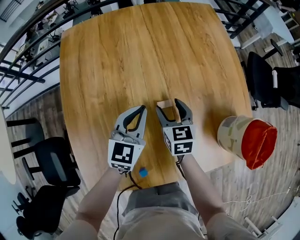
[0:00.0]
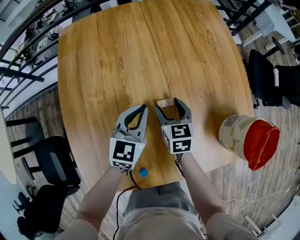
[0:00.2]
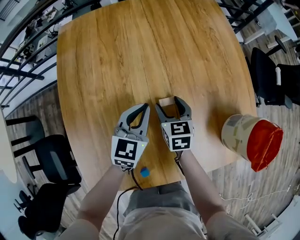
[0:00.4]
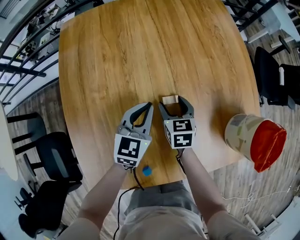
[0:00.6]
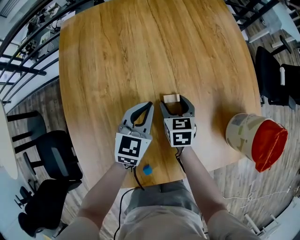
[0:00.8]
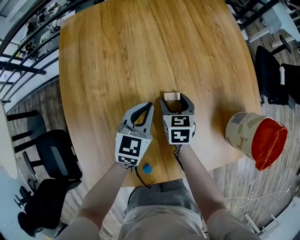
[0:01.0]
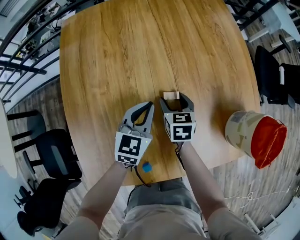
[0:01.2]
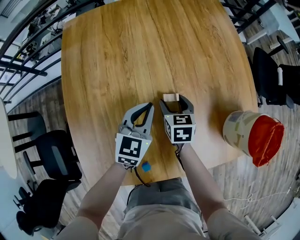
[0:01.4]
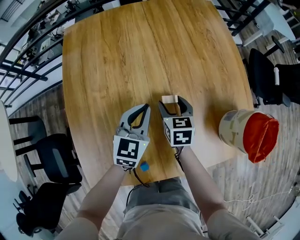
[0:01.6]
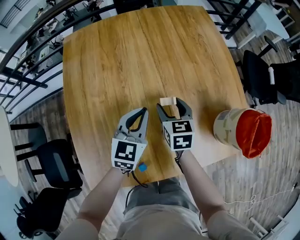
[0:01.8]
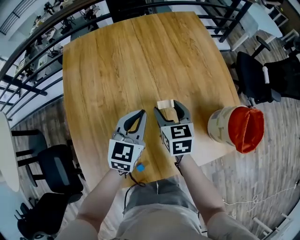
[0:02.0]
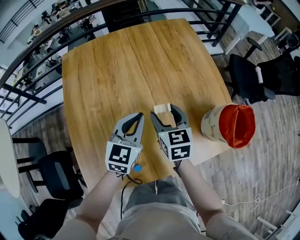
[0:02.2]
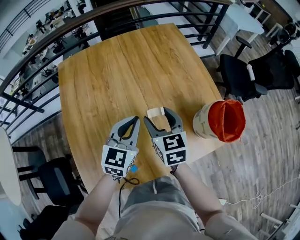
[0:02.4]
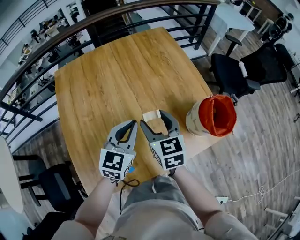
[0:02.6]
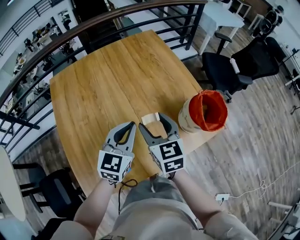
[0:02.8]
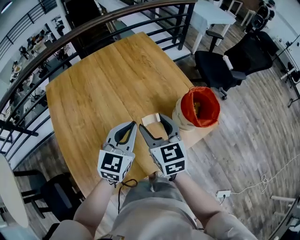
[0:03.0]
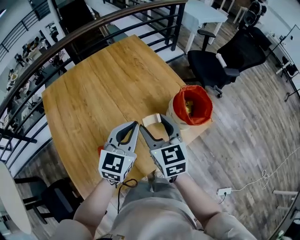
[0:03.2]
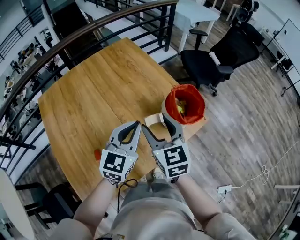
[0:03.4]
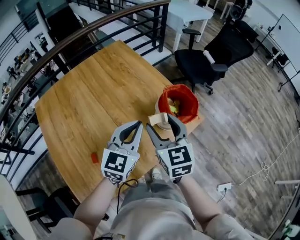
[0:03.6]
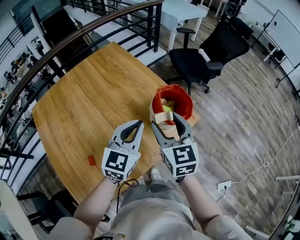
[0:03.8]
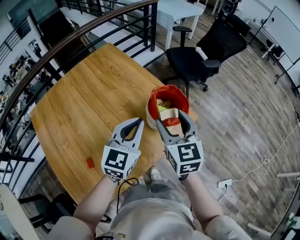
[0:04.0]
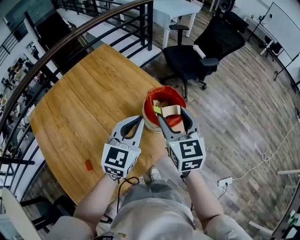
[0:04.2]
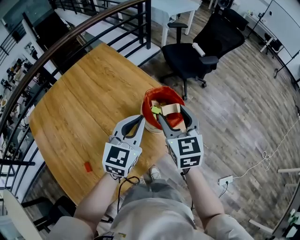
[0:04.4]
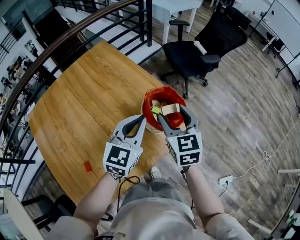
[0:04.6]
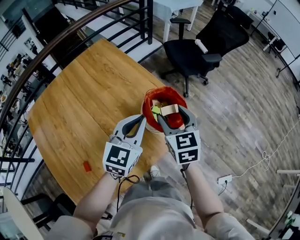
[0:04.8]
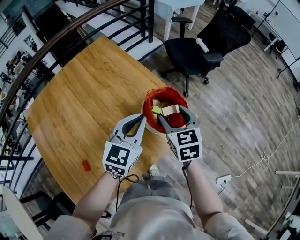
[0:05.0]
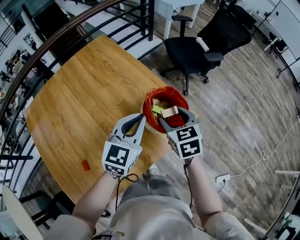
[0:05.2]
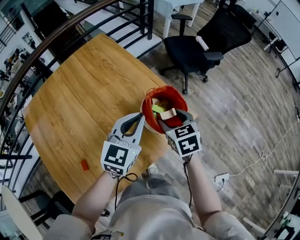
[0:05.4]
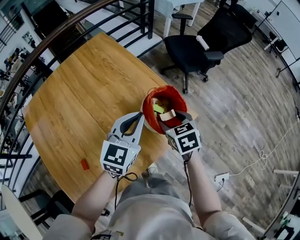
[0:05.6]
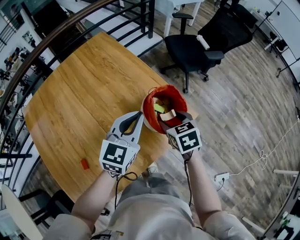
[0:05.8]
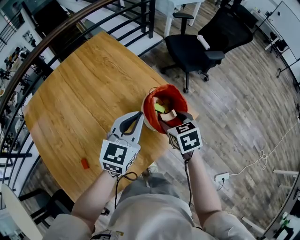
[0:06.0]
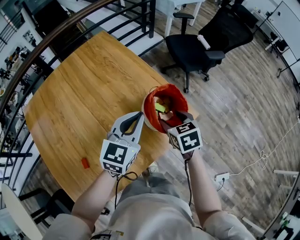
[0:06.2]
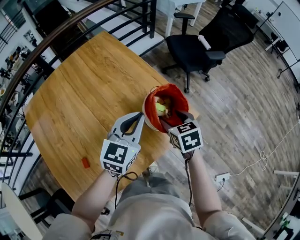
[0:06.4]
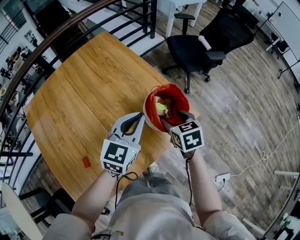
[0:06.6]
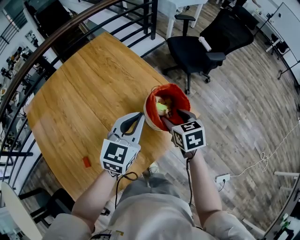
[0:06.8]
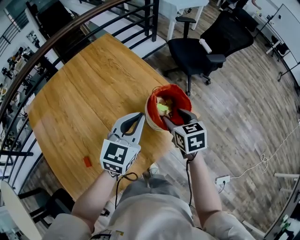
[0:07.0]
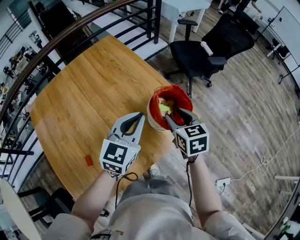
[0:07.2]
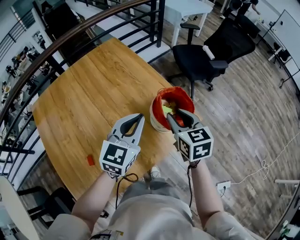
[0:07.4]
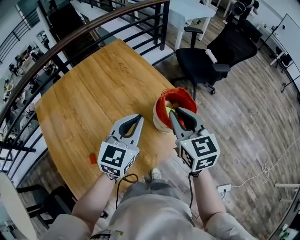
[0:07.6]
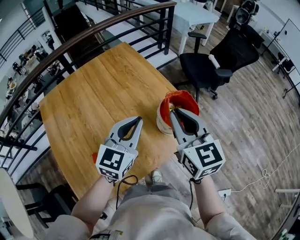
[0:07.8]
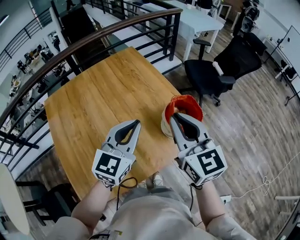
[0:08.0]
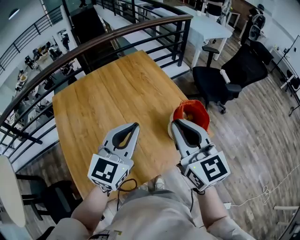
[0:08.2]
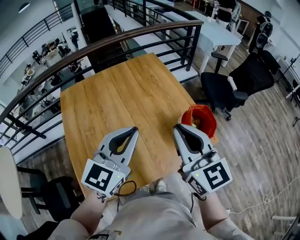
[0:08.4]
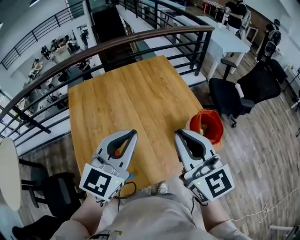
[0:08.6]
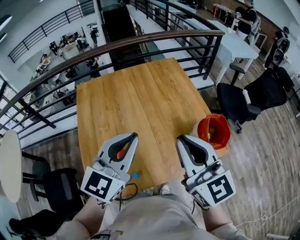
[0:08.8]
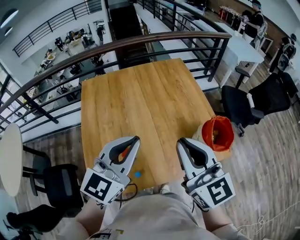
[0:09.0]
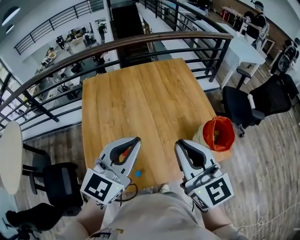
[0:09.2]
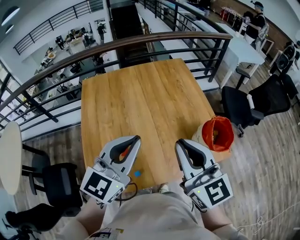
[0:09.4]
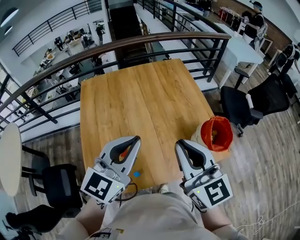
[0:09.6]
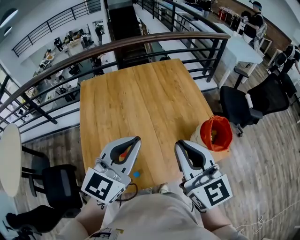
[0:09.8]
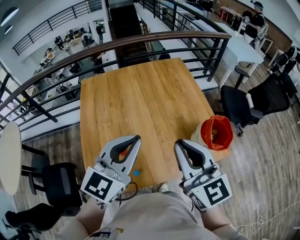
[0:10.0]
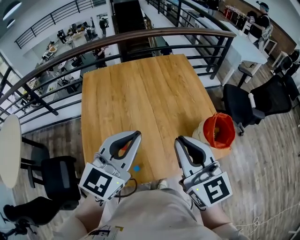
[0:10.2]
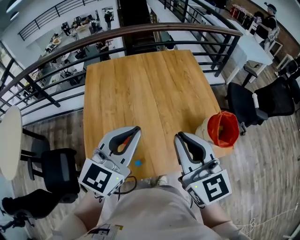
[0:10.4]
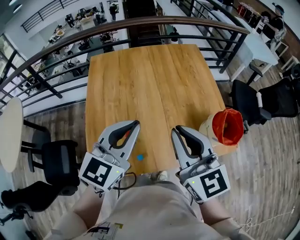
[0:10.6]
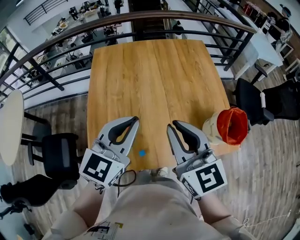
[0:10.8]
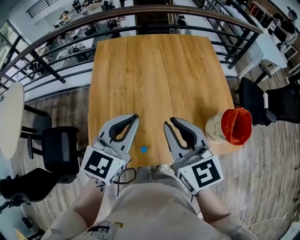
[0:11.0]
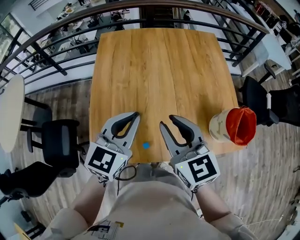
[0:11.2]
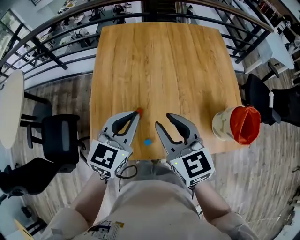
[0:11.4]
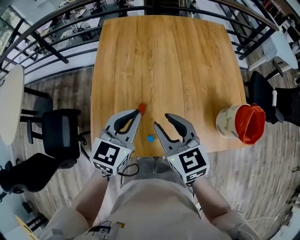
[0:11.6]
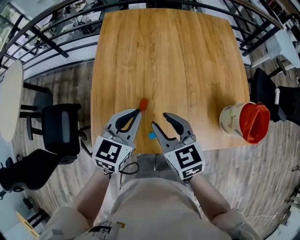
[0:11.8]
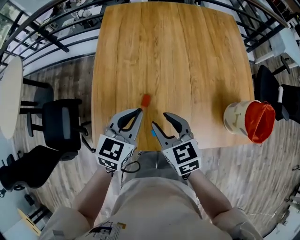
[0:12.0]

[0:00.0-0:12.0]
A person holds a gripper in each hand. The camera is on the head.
0:01.6 to 0:03.0: The right gripper moves upward, backward and to the right, some 30 cm, and changes its angle by about 20 degrees. Meanwhile the left gripper moves upward, to the right and backward, about 25 cm, and changes its angle by approximately 20 degrees.
0:03.0 to 0:04.4: The left gripper is displaced to the right and forward by approximately 20 cm, while the right gripper is displaced to the right by some 25 cm, and changes its angle by approximately 20 degrees.
0:04.4 to 0:06.0: The right gripper goes some 15 cm downward, and rotates roughly 30 degrees.
0:06.0 to 0:07.6: The right gripper heads upward, covering about 15 cm, turns by approximately 30 degrees, and closes its fingers; the left gripper travels upward and backward by some 5 cm.
0:07.6 to 0:09.0: The right gripper moves to the left, upward and backward, some 25 cm, and swivels approximately 40 degrees. The left gripper travels to the left, backward and upward by roughly 30 cm, and swivels approximately 20 degrees.
0:09.0 to 0:10.4: The grippers stay close to where they were, moving slightly.
0:10.4 to 0:12.0: Both grippers travel together downward and to the left, roughly 30 cm. The right gripper tilts its fingers some 30 degrees downward, and opens. The left gripper rotates approximately 30 degrees.

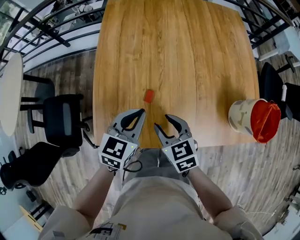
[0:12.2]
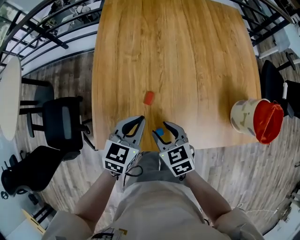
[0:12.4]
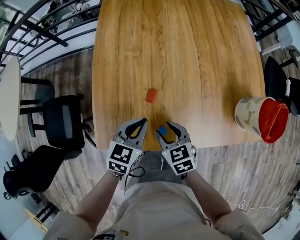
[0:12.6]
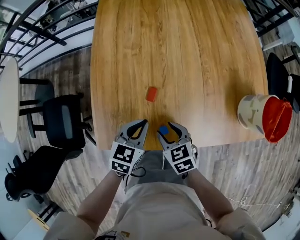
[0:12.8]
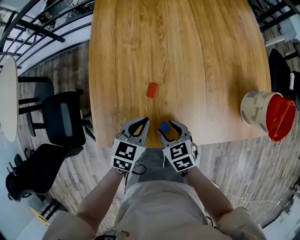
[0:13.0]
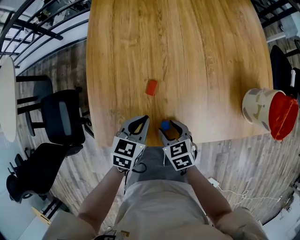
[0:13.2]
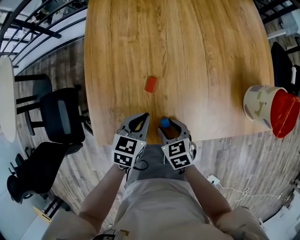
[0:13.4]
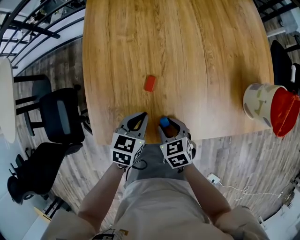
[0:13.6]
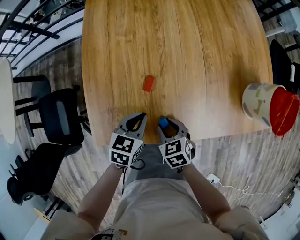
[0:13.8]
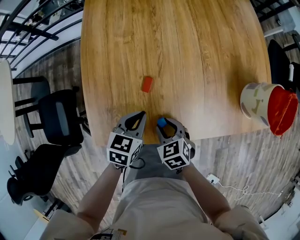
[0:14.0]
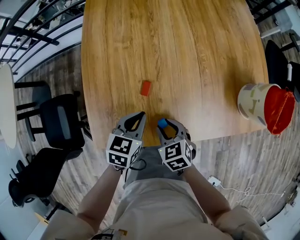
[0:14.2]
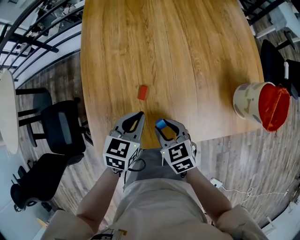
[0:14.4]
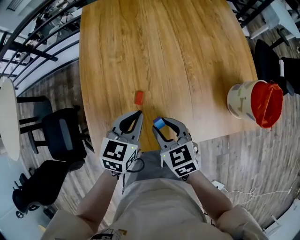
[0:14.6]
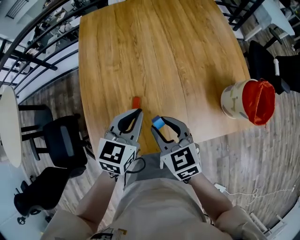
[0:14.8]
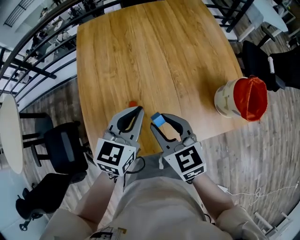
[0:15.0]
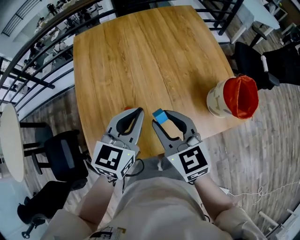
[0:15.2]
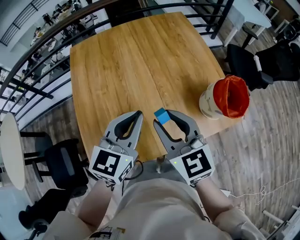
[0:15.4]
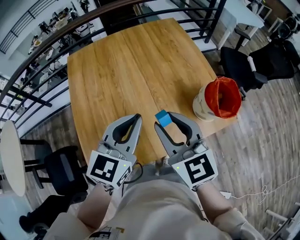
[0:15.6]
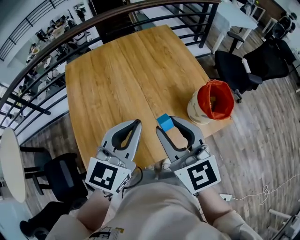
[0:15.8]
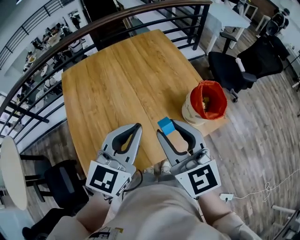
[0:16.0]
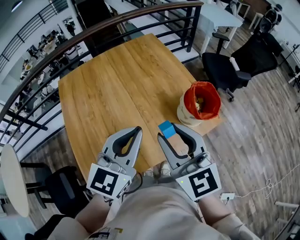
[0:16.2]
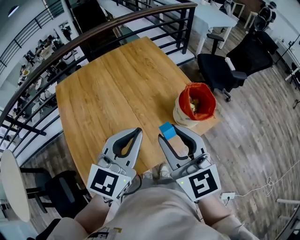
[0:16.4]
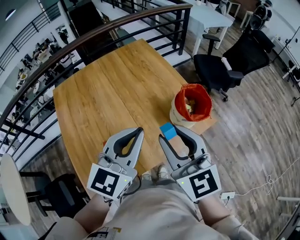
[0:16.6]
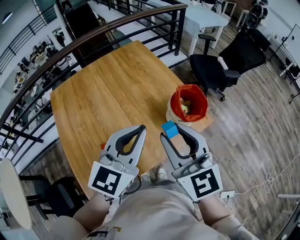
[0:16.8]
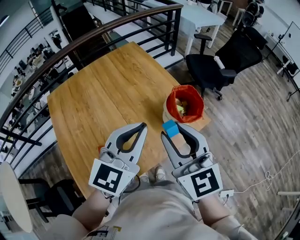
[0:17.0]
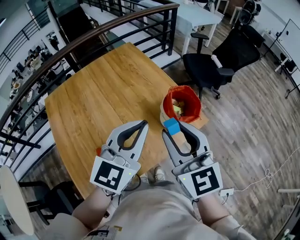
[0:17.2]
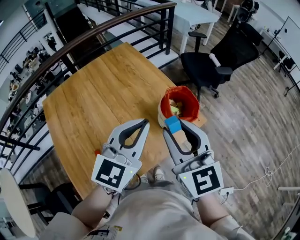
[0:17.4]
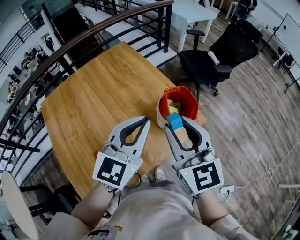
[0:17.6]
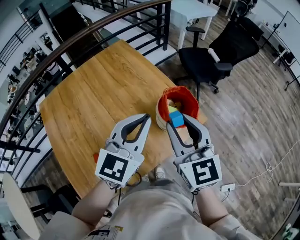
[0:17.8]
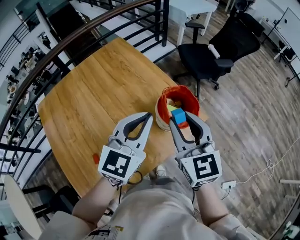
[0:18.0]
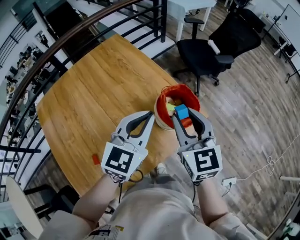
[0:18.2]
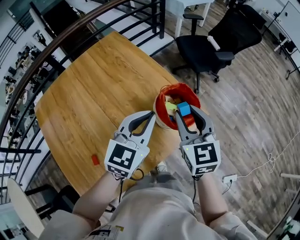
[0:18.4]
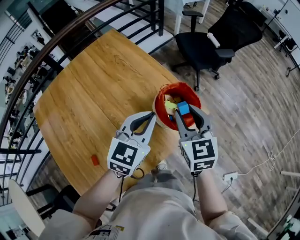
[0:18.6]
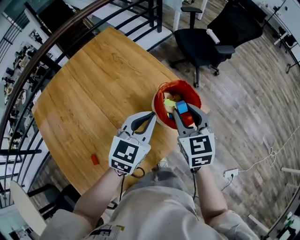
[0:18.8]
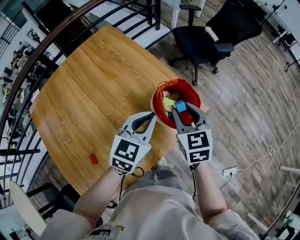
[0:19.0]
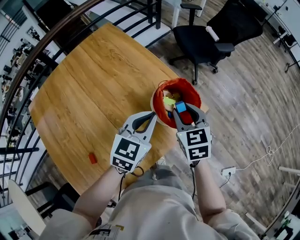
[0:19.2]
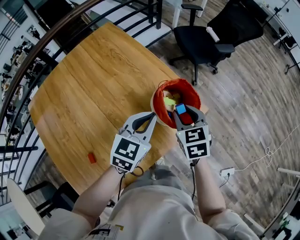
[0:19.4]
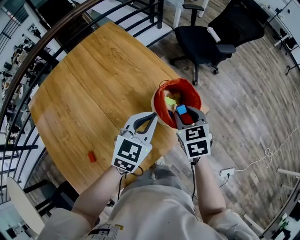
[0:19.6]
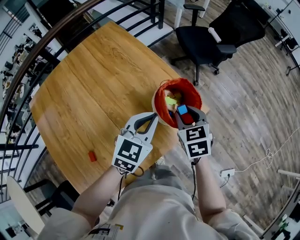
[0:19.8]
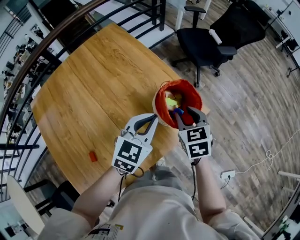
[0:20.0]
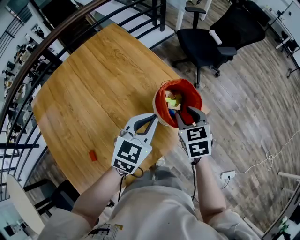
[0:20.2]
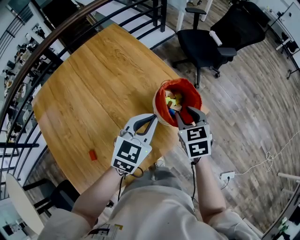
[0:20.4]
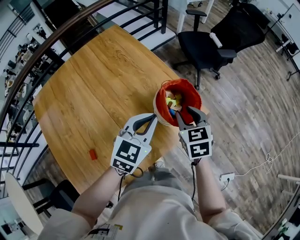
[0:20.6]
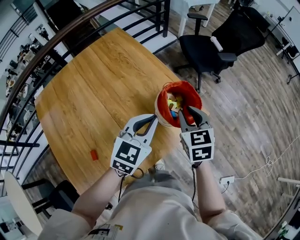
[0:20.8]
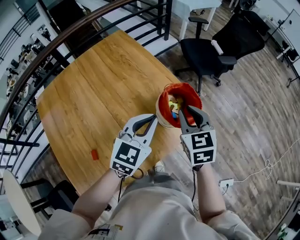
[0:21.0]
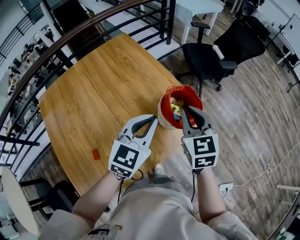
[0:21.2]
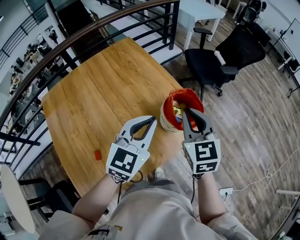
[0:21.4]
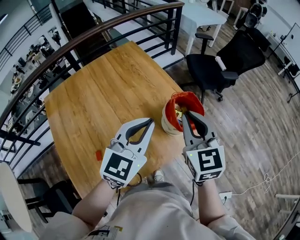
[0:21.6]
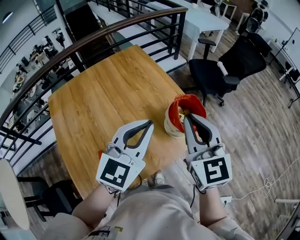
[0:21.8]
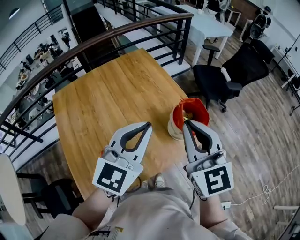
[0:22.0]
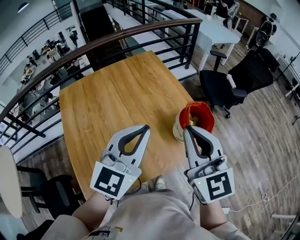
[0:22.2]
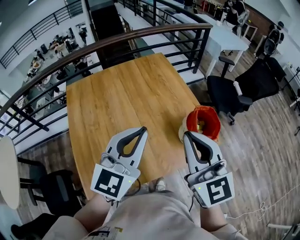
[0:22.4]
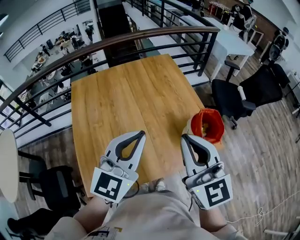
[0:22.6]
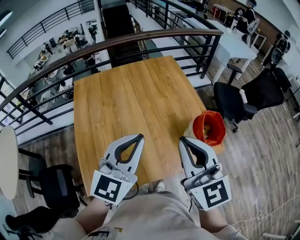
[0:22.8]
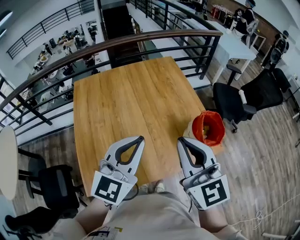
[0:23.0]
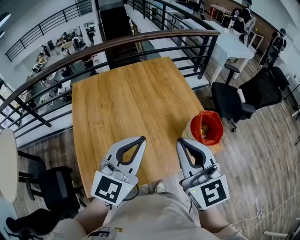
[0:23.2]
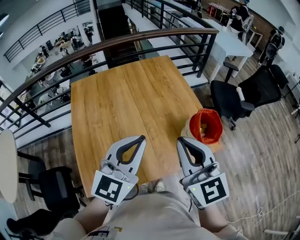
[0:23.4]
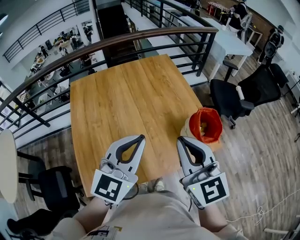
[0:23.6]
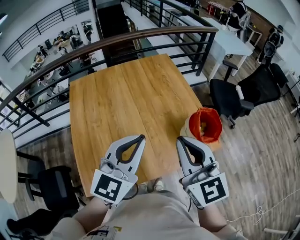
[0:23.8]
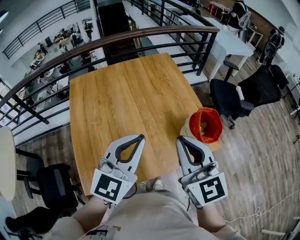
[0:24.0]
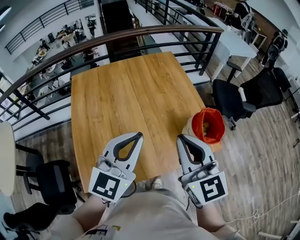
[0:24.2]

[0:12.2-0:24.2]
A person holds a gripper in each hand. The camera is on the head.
0:12.2 to 0:13.8: The two grippers go about 15 cm downward.
0:13.8 to 0:15.2: The left gripper goes about 30 cm upward and to the right, and swivels roughly 30 degrees. The right gripper heads upward, covering approximately 30 cm, and angles its fingers upward, by about 30 degrees.
0:15.2 to 0:16.6: Both grippers move to the right and upward, approximately 20 cm. The right gripper turns by about 30 degrees, while the left gripper swivels approximately 20 degrees.
0:16.6 to 0:18.2: Both grippers travel together forward, to the right and downward, roughly 20 cm. The right gripper rotates about 20 degrees.
0:18.2 to 0:19.8: Both grippers move downward, about 15 cm. The right gripper swivels roughly 30 degrees.
0:19.8 to 0:21.2: The right gripper travels upward by some 10 cm, and closes up; the left gripper moves upward, roughly 10 cm.
0:21.2 to 0:22.6: The right gripper shifts by some 30 cm, and turns by roughly 40 degrees, while the left gripper changes place by approximately 25 cm, and rotates roughly 30 degrees.
0:22.6 to 0:24.2: The grippers make only small movements.
